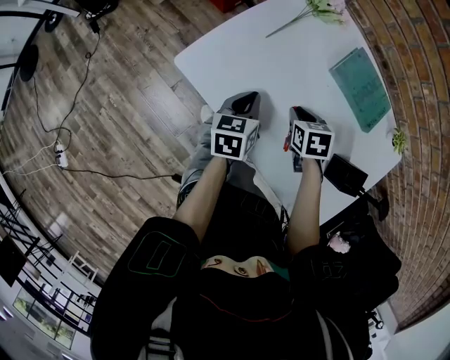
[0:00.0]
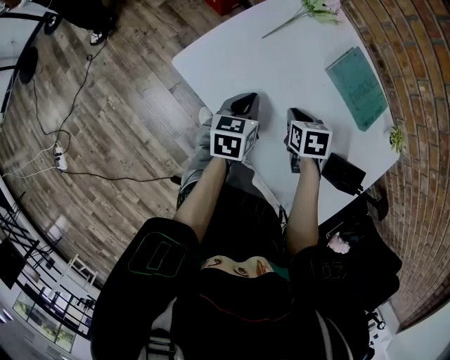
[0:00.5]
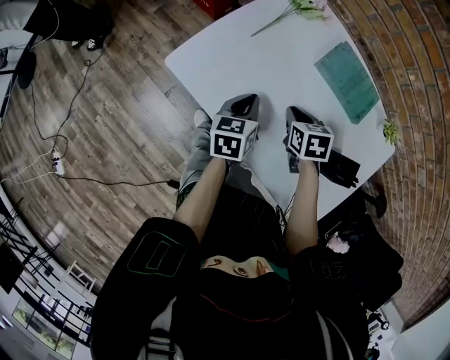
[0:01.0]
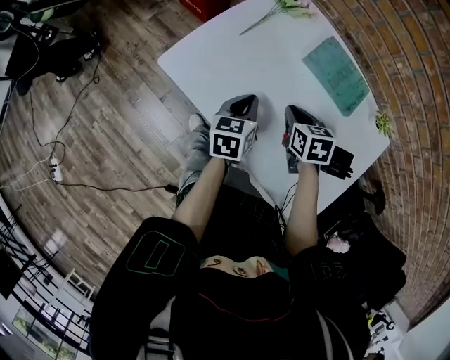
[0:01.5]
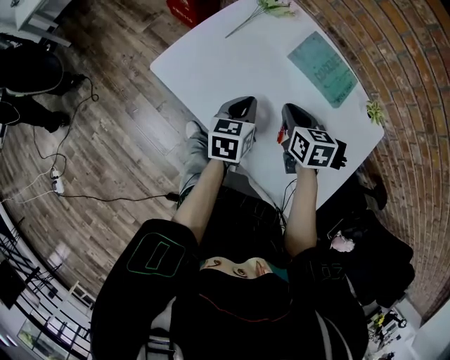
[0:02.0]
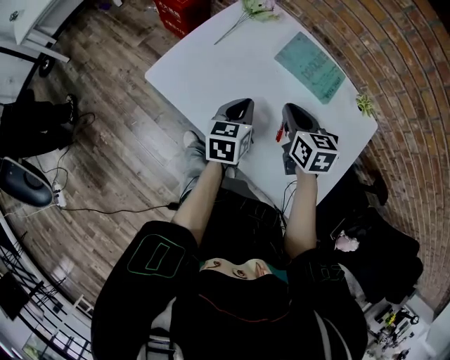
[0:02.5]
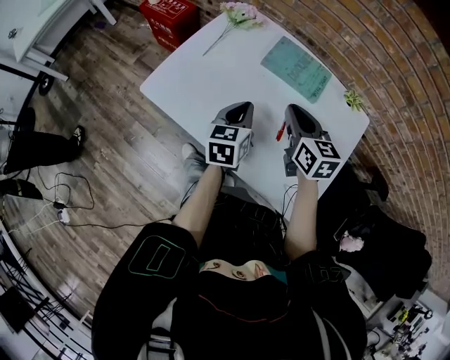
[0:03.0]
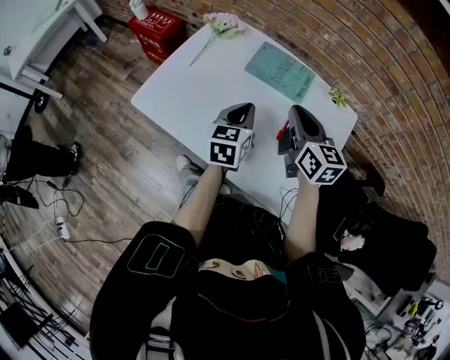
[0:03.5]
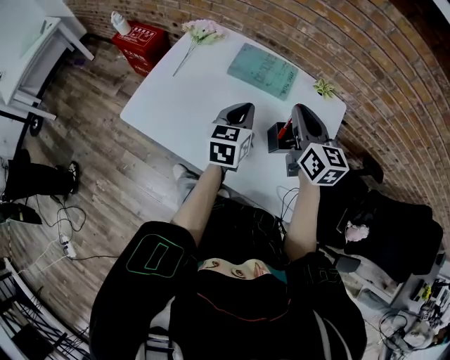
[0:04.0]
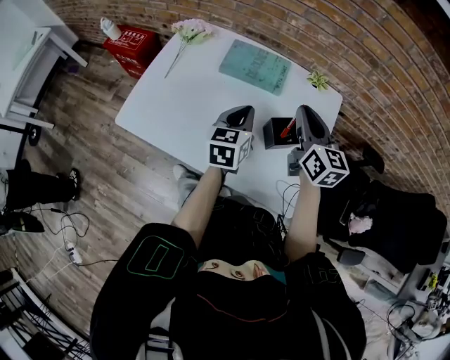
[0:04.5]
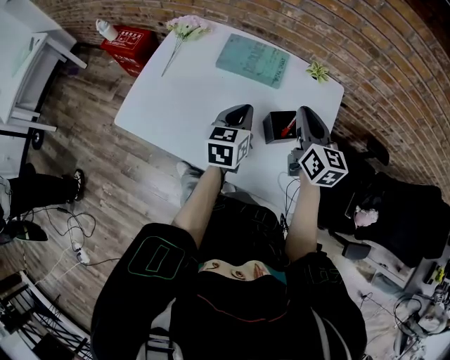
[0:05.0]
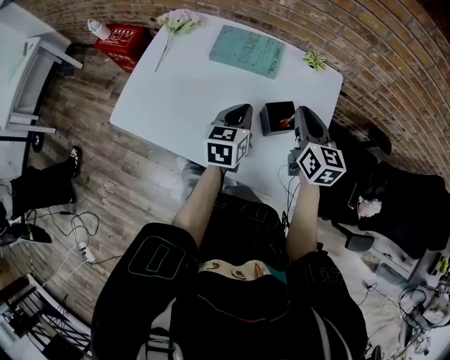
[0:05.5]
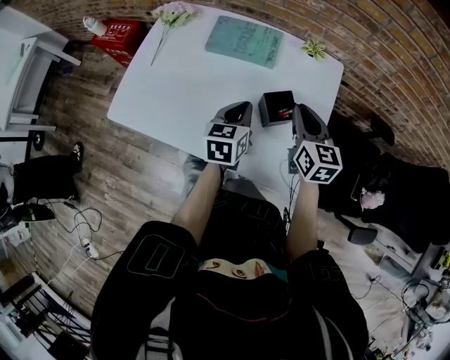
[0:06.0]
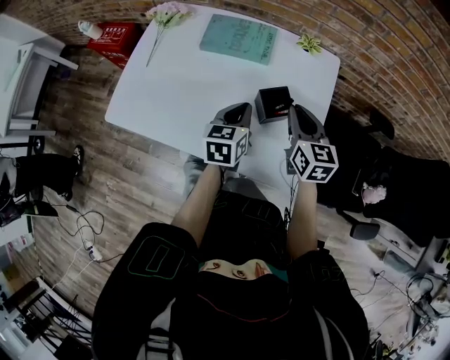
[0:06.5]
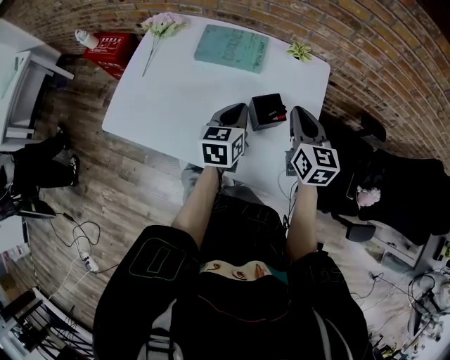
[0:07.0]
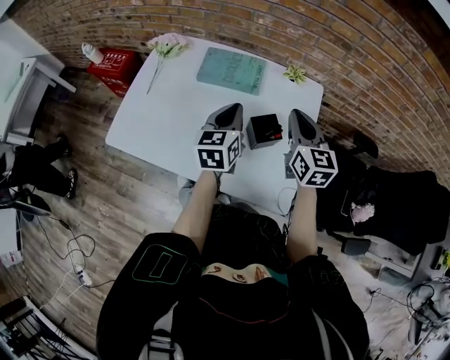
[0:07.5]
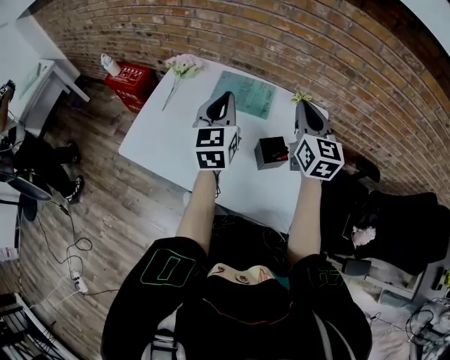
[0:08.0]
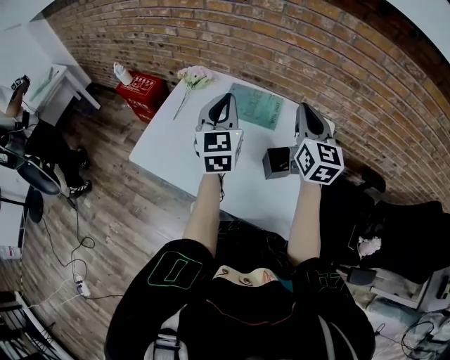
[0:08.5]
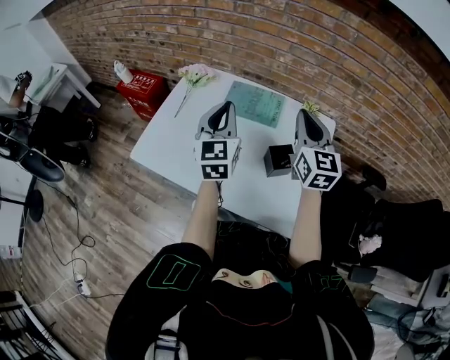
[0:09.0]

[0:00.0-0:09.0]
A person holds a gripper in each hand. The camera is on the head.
0:00.0 to 0:02.0: The right gripper heads upward and to the right, covering about 10 cm, and changes its angle by approximately 20 degrees. The left gripper heads to the right and upward, covering about 10 cm.
0:02.0 to 0:04.5: The two grippers go some 20 cm to the right and upward. The right gripper tilts its fingers roughly 30 degrees upward. Meanwhile the left gripper rotates about 20 degrees.
0:04.5 to 0:07.0: The left gripper travels to the right by approximately 5 cm. Meanwhile the right gripper travels to the right and downward by roughly 10 cm.
0:07.0 to 0:09.0: The left gripper travels upward and to the left by about 20 cm, and changes its angle by some 40 degrees, while the right gripper goes approximately 15 cm upward, to the left and forward.

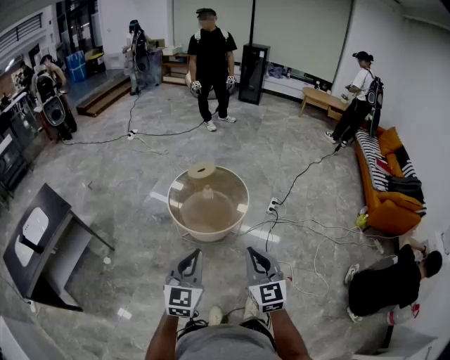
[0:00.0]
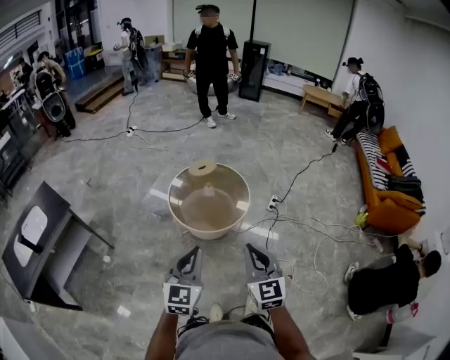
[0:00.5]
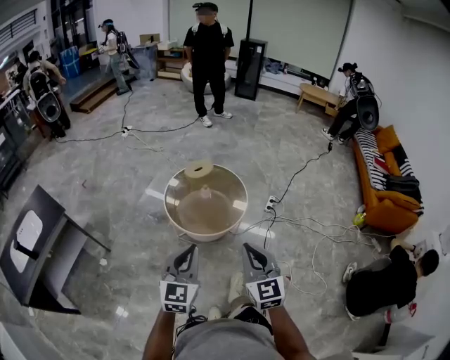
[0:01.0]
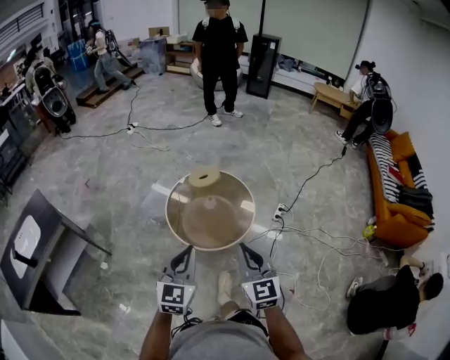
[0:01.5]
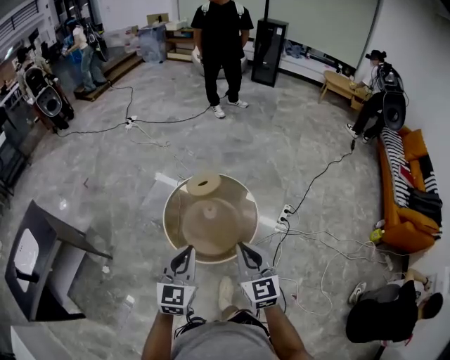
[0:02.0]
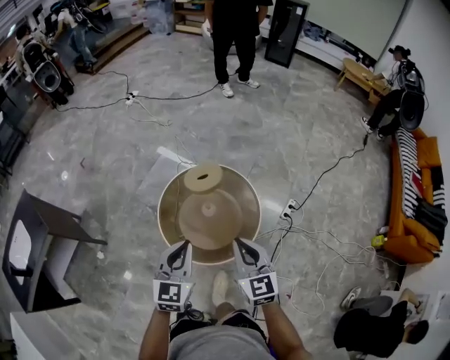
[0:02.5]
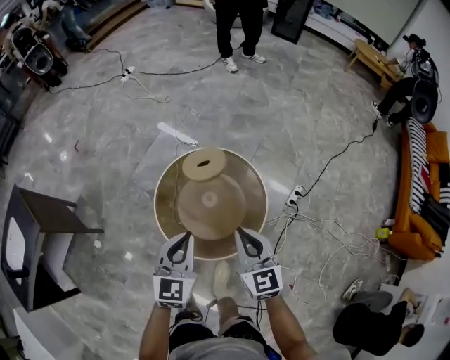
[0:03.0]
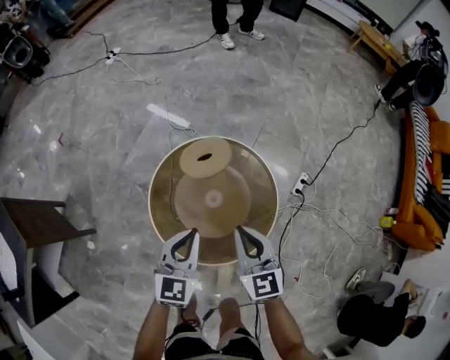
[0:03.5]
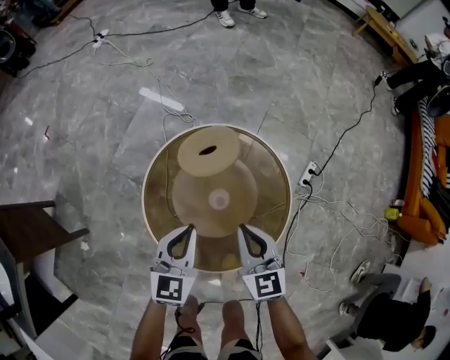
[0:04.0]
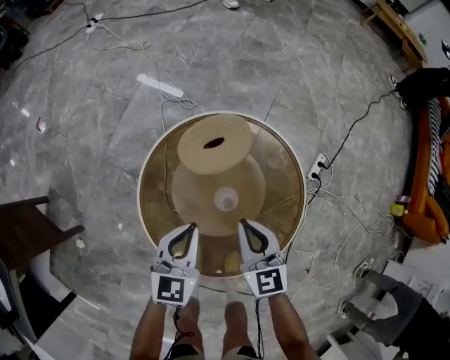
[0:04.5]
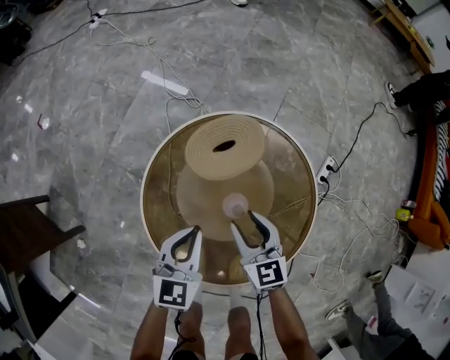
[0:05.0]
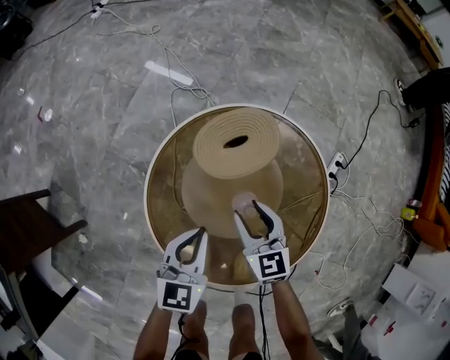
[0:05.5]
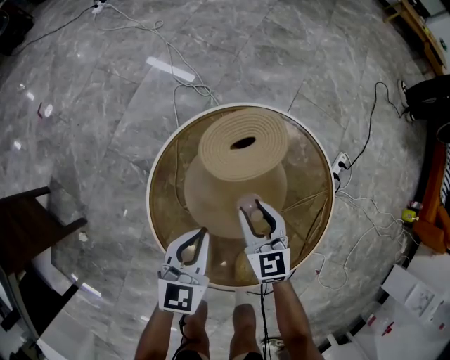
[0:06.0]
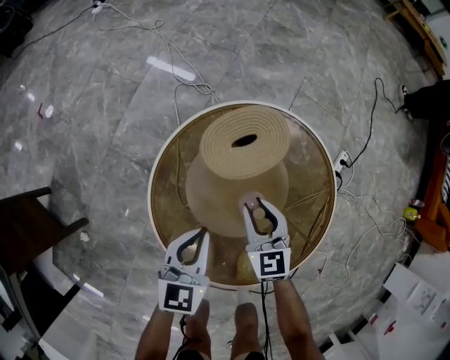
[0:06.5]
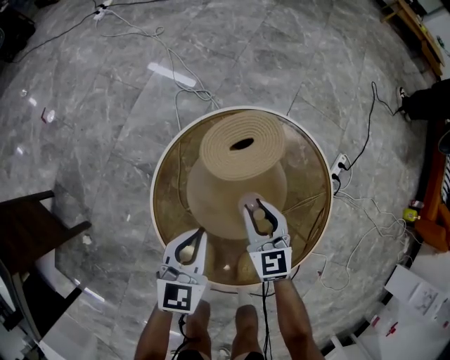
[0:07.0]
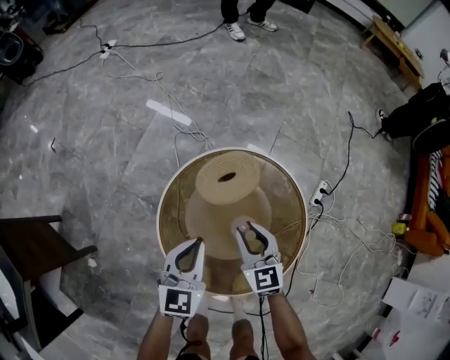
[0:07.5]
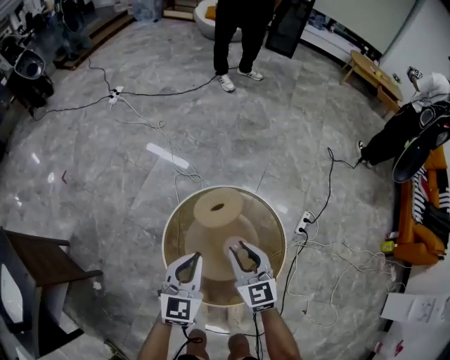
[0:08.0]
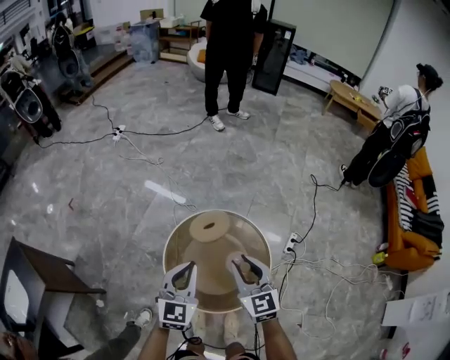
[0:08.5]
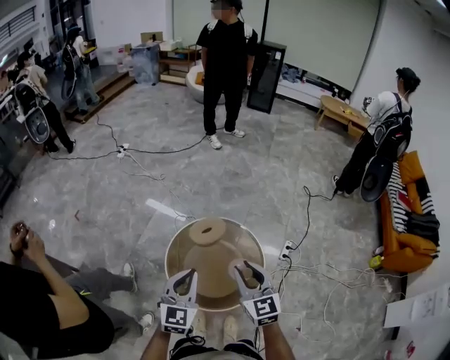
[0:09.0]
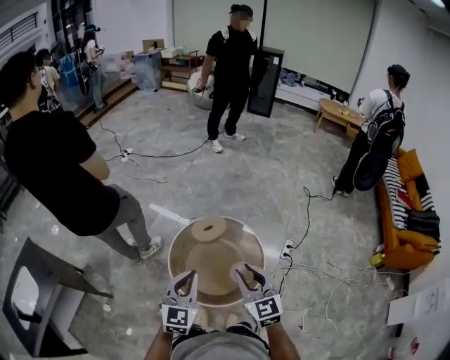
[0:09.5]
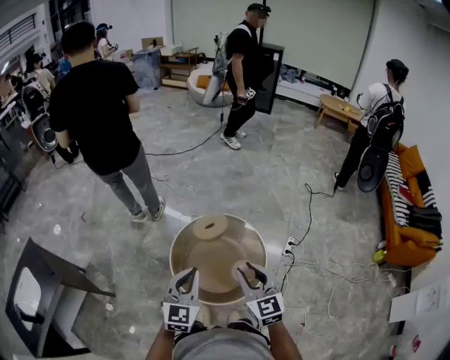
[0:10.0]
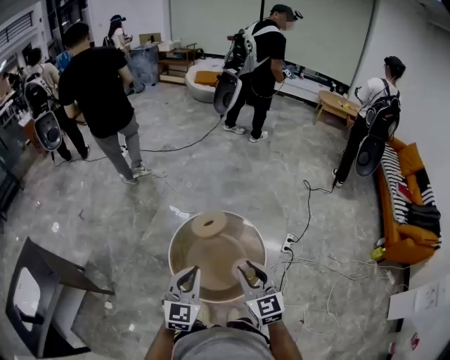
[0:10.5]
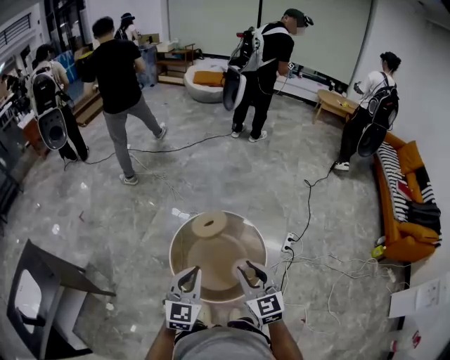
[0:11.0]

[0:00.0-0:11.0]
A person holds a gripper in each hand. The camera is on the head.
0:00.0 to 0:02.0: Both grippers travel together forward, approximately 35 cm.
0:02.0 to 0:03.5: The grippers both shift forward and downward by roughly 35 cm.
0:03.5 to 0:05.5: The grippers both shift downward by about 30 cm. The right gripper opens its fingers.
0:05.5 to 0:07.5: The two grippers go about 15 cm upward.
0:07.5 to 0:09.0: The two grippers go about 40 cm upward and backward. The left gripper swivels some 20 degrees.
0:09.0 to 0:11.0: The right gripper moves backward, approximately 5 cm.

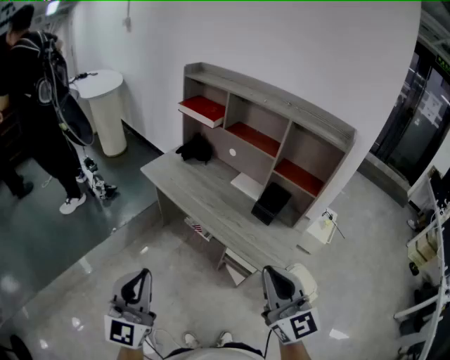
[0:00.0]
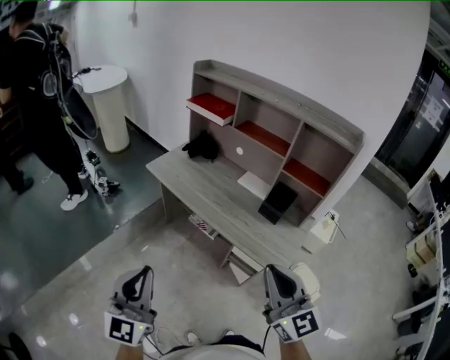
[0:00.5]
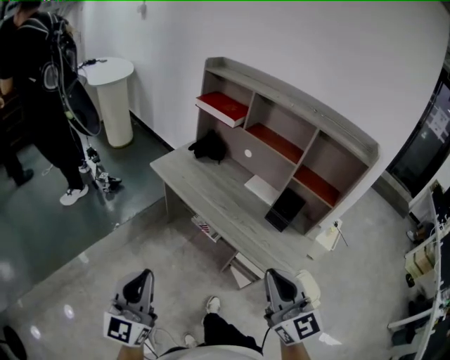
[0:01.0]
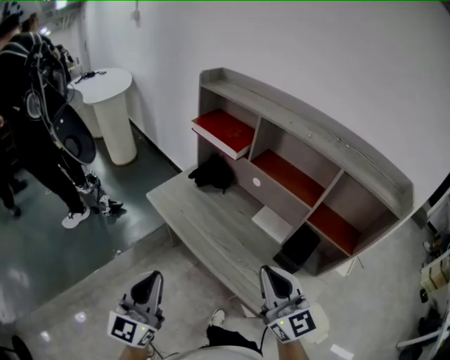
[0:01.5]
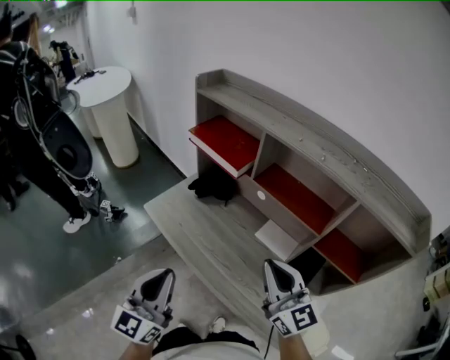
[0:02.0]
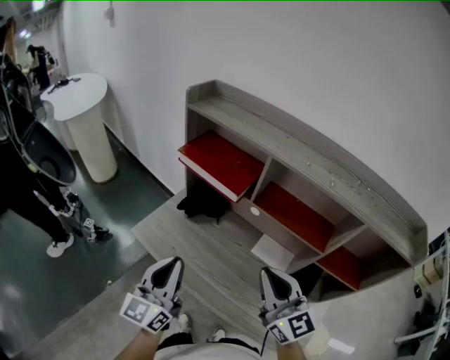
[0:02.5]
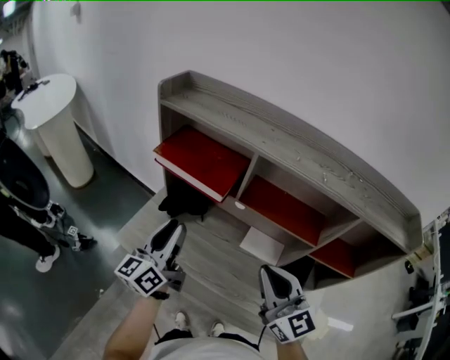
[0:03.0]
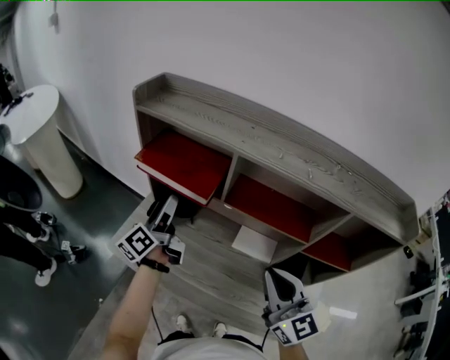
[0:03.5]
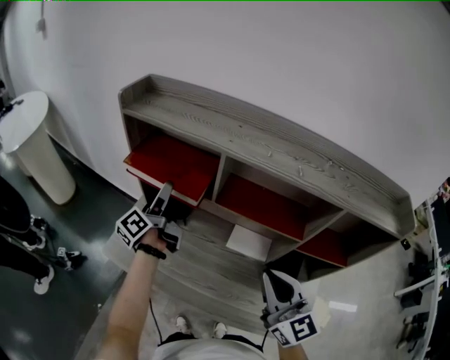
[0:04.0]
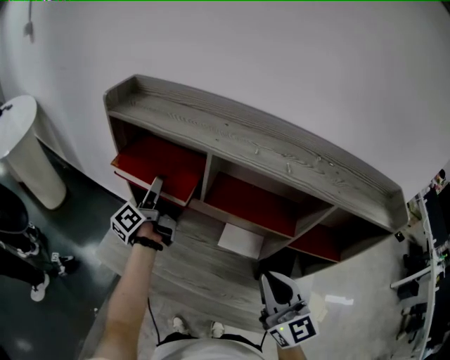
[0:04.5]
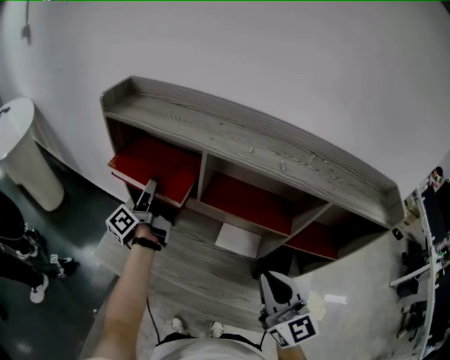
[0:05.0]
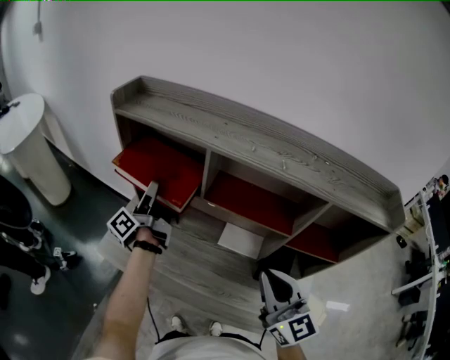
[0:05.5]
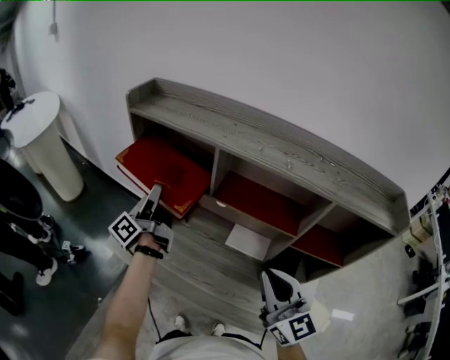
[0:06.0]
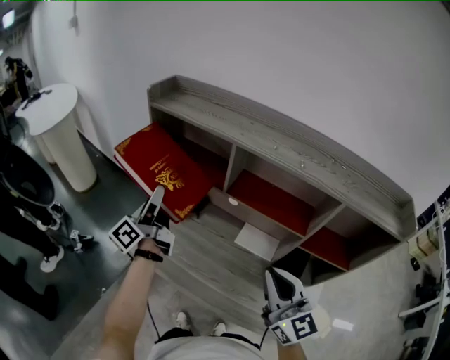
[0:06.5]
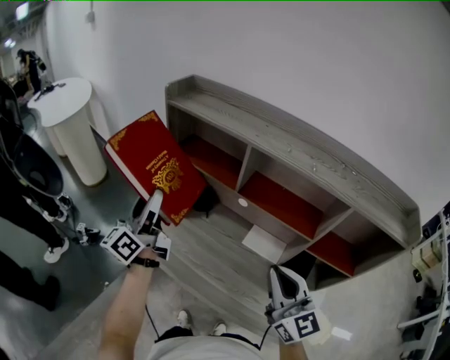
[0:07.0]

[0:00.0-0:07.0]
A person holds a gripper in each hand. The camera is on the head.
0:00.0 to 0:02.0: The grippers both shift forward by about 40 cm.
0:02.0 to 0:03.5: The left gripper moves forward, roughly 40 cm, twists about 60 degrees counterclockwise, seen from behind, and opens up. Meanwhile the right gripper heads forward, covering about 5 cm, and rotates roughly 20 degrees.
0:03.5 to 0:05.0: The left gripper shifts roughly 5 cm forward, and swivels roughly 20 degrees.
0:05.0 to 0:07.0: The left gripper shifts some 20 cm backward, to the left and upward, and rotates approximately 40 degrees.
